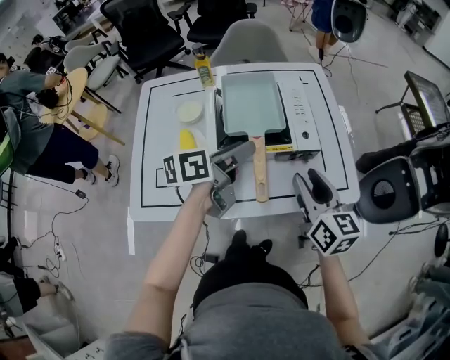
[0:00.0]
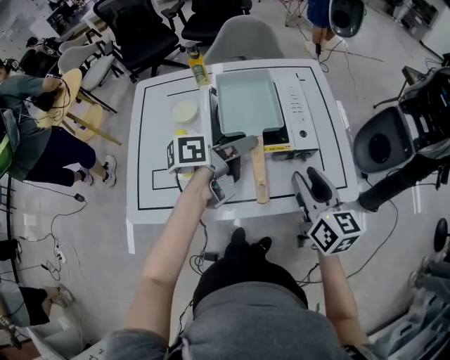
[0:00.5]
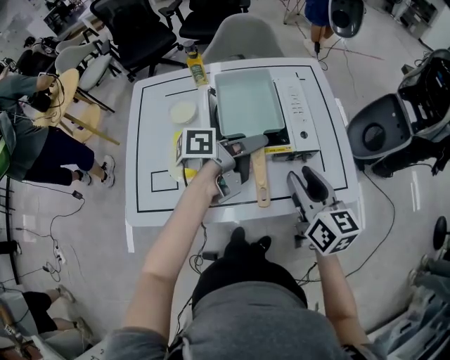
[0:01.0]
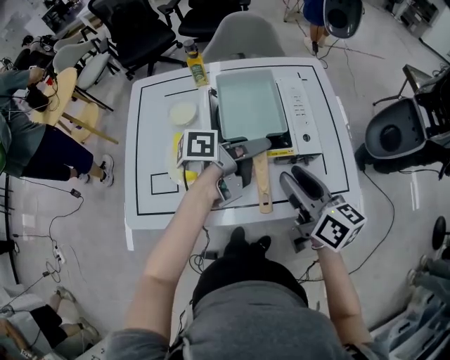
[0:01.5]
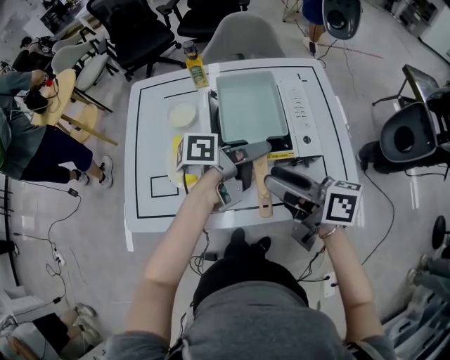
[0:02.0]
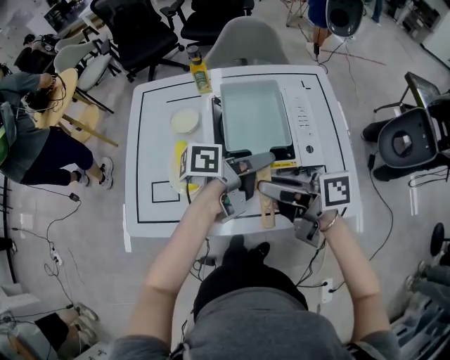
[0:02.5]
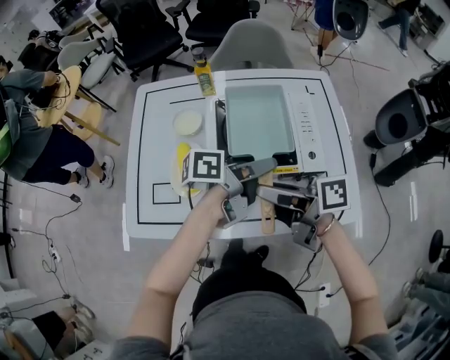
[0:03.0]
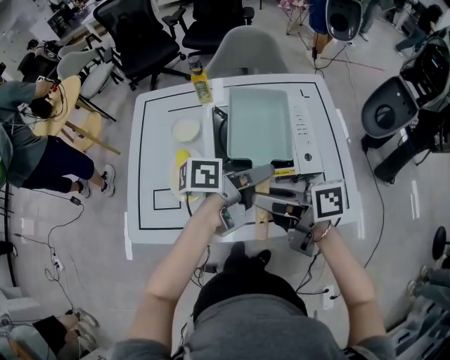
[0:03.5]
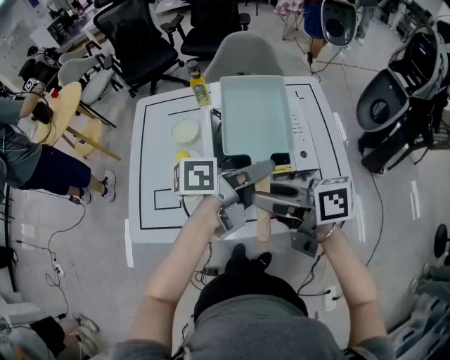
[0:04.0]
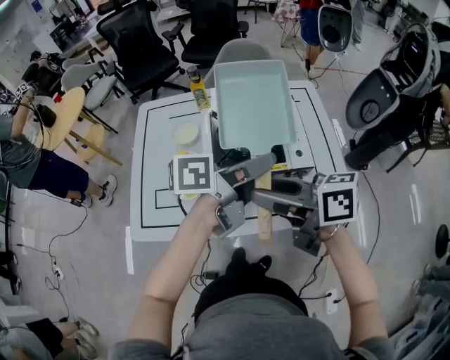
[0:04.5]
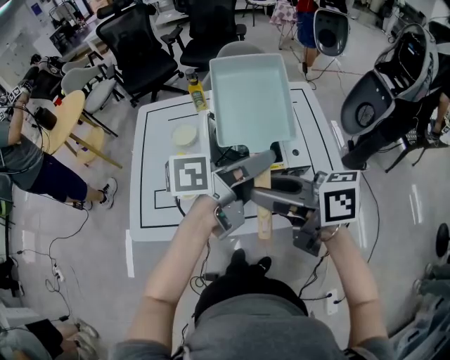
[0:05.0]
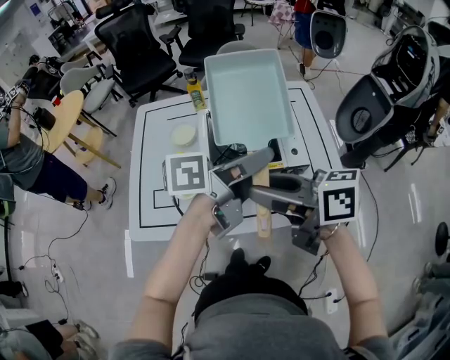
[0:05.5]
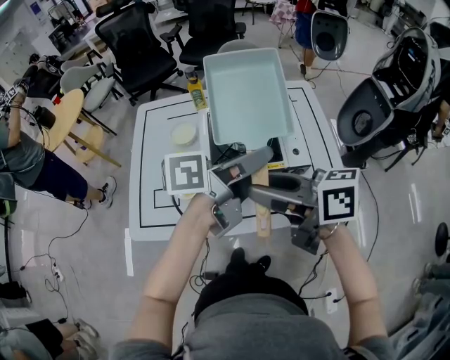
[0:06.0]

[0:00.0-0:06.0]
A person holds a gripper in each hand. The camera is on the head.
0:00.0 to 0:02.0: The right gripper moves to the left, roughly 10 cm, and swivels about 40 degrees, while the left gripper ends up approximately 5 cm from where it was, and swivels roughly 30 degrees.
0:02.0 to 0:04.0: The left gripper is displaced upward by about 5 cm.
0:04.0 to 0:06.0: The two grippers go approximately 5 cm upward.

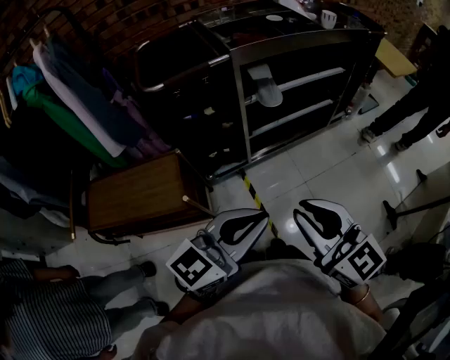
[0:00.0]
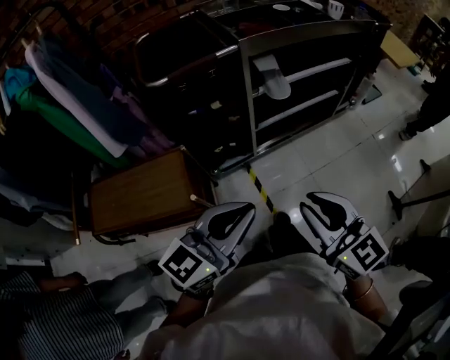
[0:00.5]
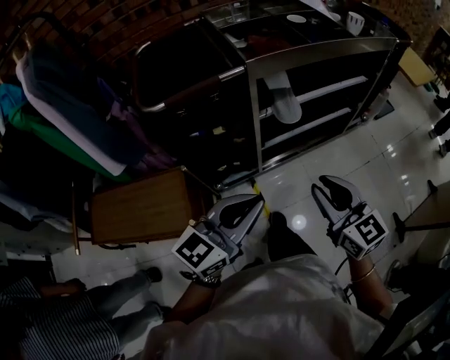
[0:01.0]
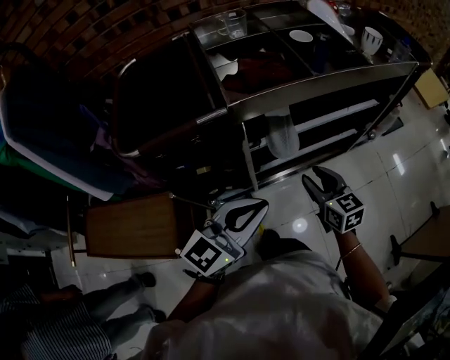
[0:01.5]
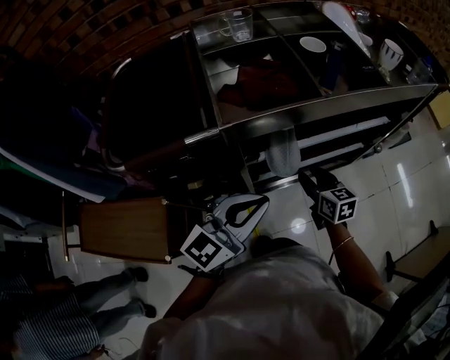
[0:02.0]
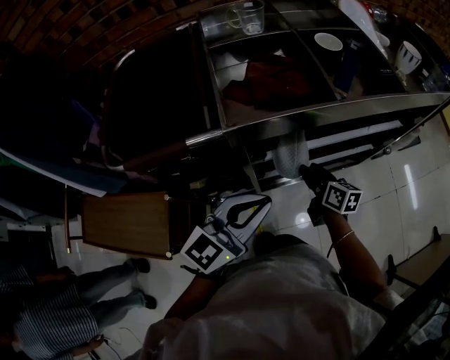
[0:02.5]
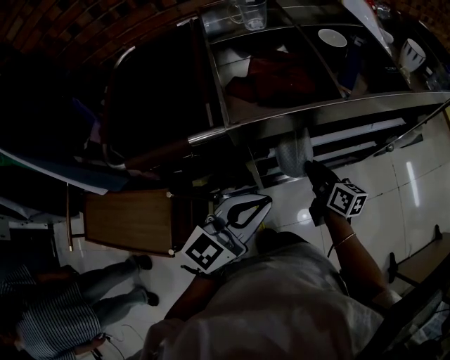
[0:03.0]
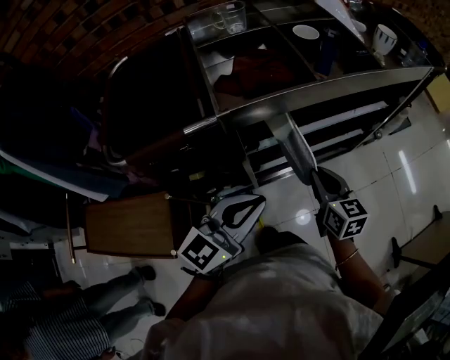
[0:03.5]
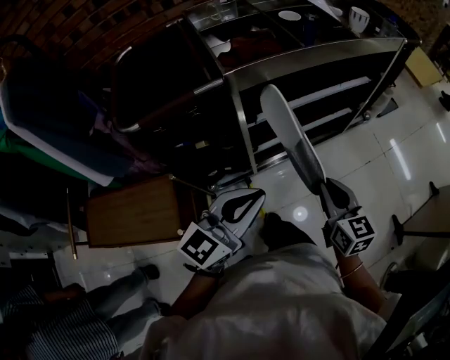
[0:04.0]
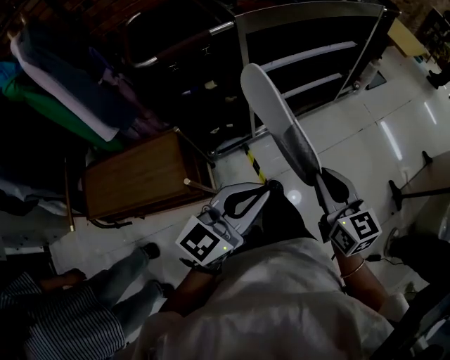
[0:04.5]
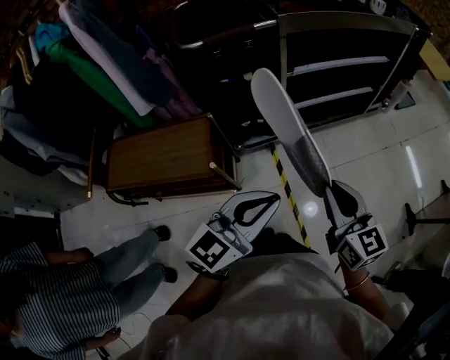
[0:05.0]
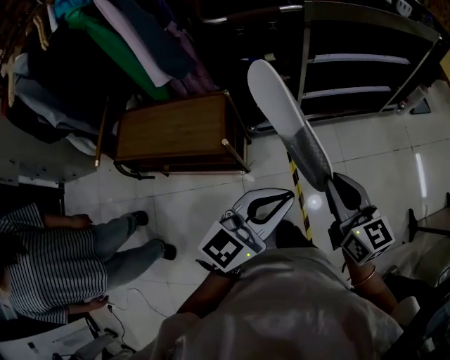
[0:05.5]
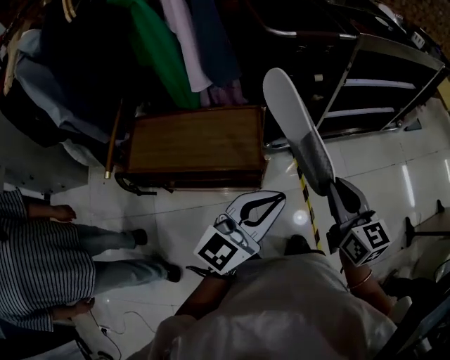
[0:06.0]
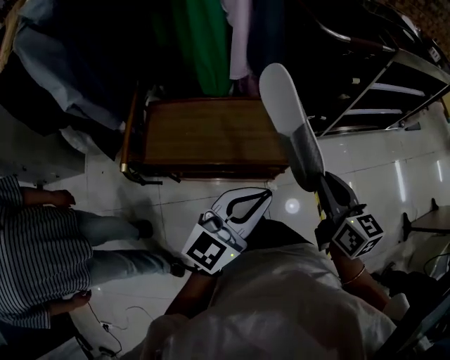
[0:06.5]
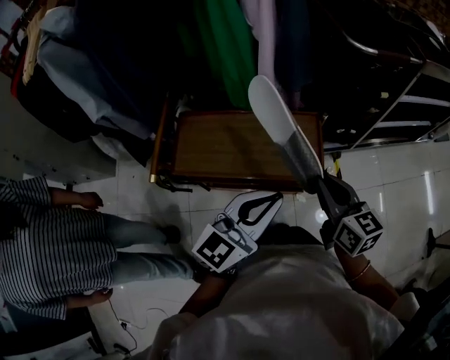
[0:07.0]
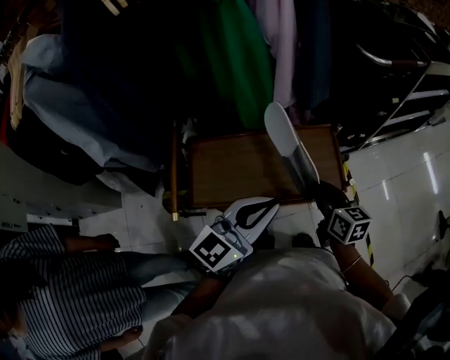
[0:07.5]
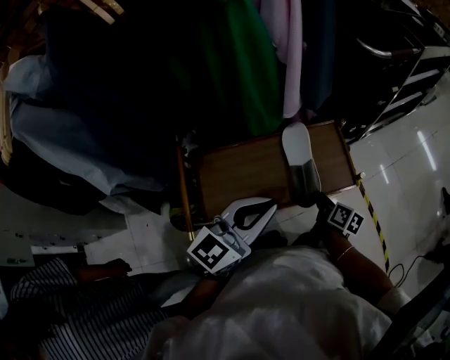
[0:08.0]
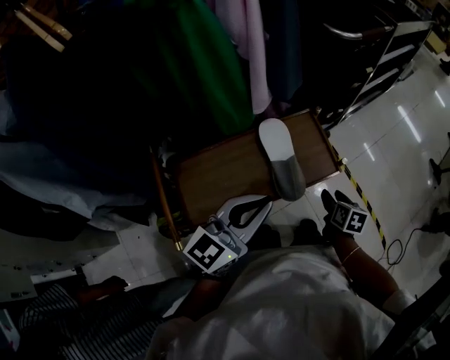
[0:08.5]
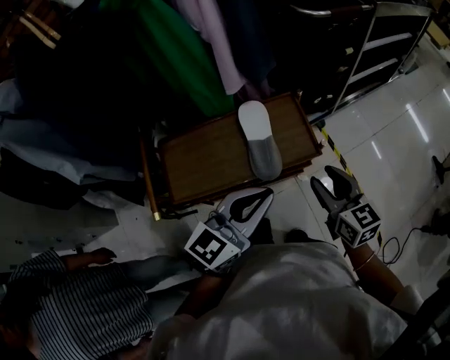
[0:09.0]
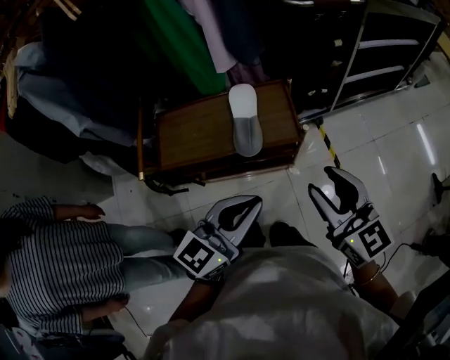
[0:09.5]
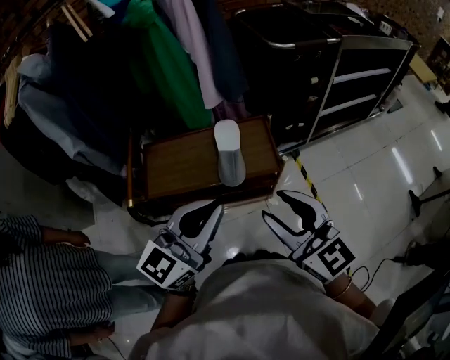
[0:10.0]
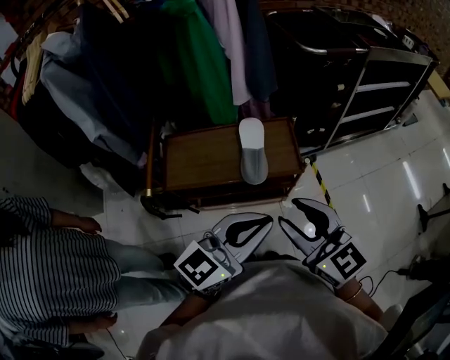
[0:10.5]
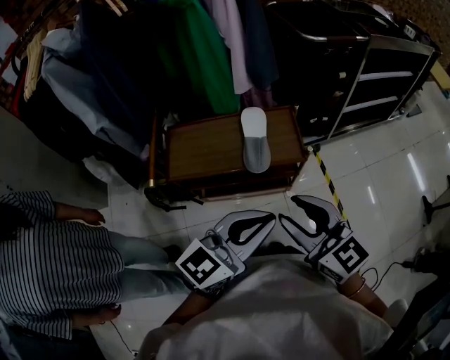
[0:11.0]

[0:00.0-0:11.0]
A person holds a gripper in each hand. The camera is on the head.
0:00.0 to 0:02.0: The left gripper is displaced forward by about 40 cm; the right gripper goes about 60 cm forward and downward, swivels some 30 degrees, and opens up.
0:02.0 to 0:03.5: The right gripper goes roughly 10 cm upward and backward, and closes.
0:03.5 to 0:05.5: The grippers both shift backward by some 40 cm.
0:05.5 to 0:07.5: Both grippers are carried to the left, approximately 50 cm. The right gripper changes its angle by roughly 20 degrees.
0:07.5 to 0:09.0: The right gripper travels to the right and backward by about 10 cm, goes downward and returns, approximately 10 cm each way, and opens its fingers; the left gripper travels to the right by about 10 cm.
0:09.0 to 0:11.0: The right gripper heads backward and upward, covering some 20 cm, and turns by approximately 30 degrees, while the left gripper shifts approximately 15 cm backward, upward and to the right.

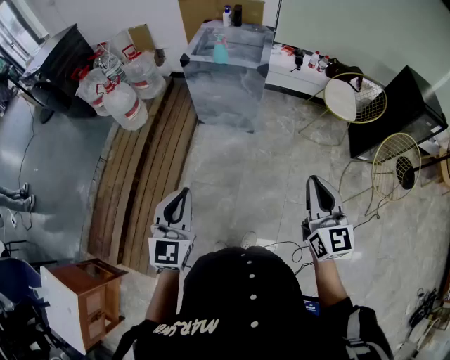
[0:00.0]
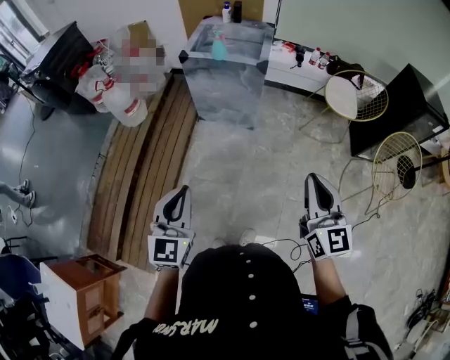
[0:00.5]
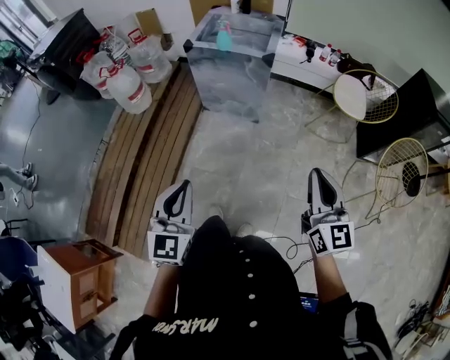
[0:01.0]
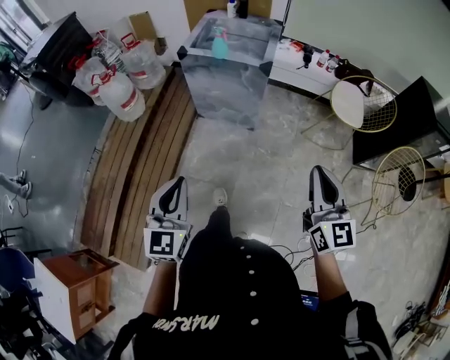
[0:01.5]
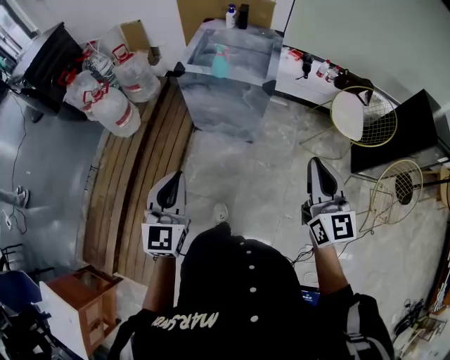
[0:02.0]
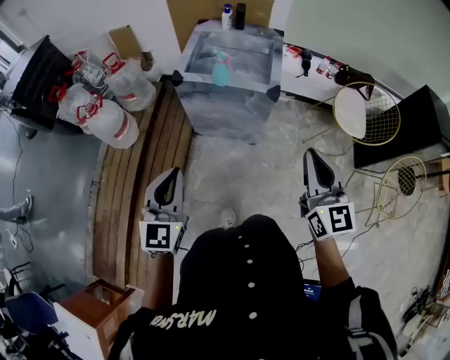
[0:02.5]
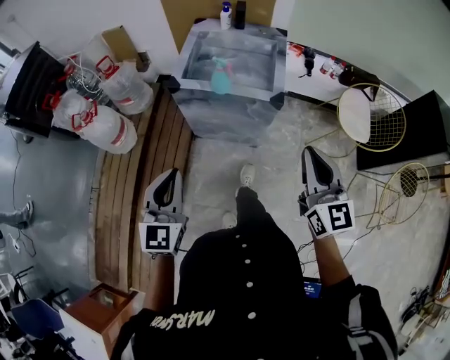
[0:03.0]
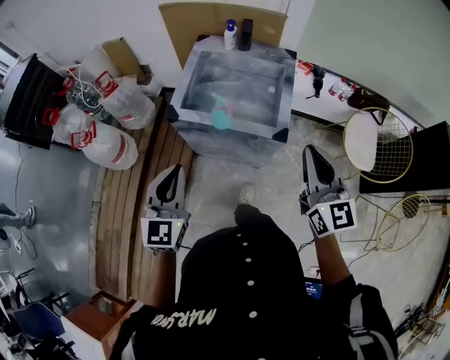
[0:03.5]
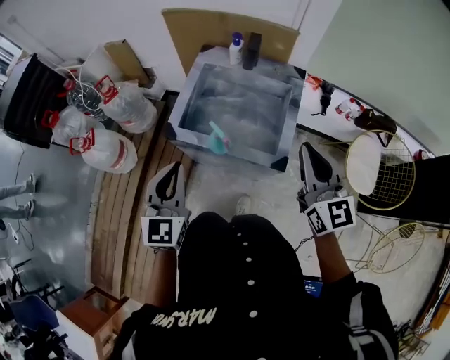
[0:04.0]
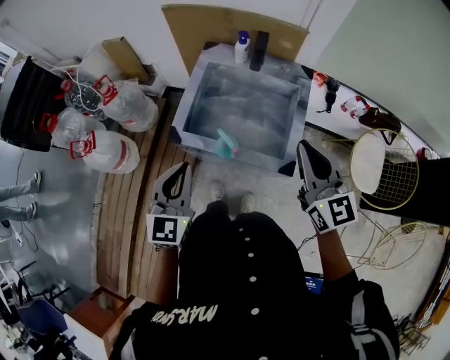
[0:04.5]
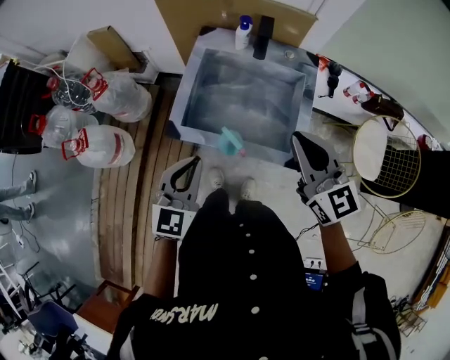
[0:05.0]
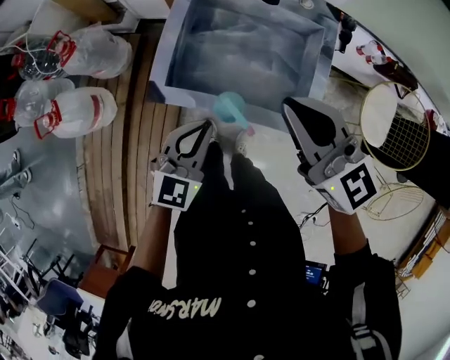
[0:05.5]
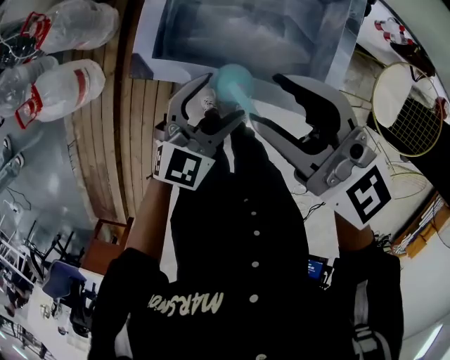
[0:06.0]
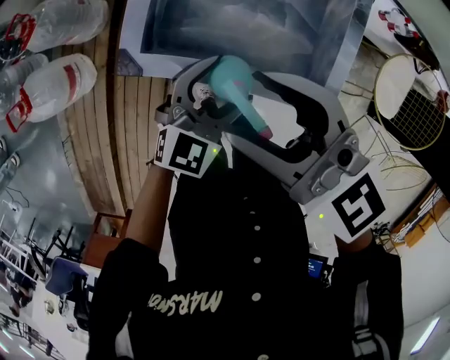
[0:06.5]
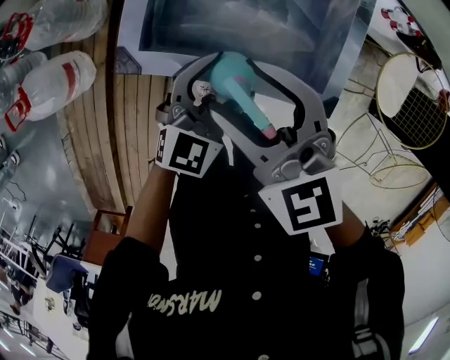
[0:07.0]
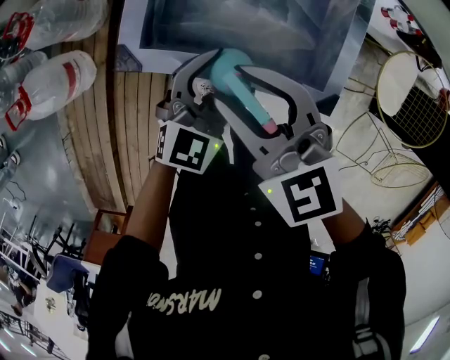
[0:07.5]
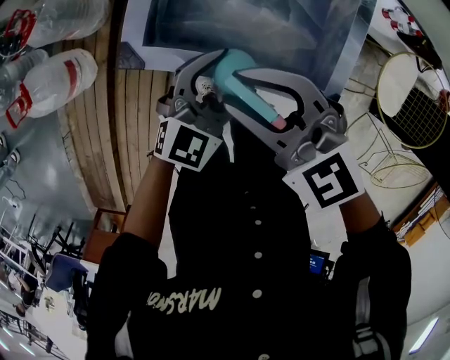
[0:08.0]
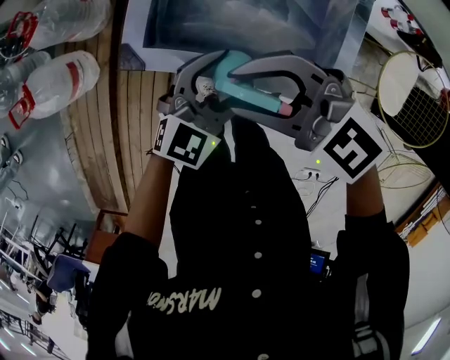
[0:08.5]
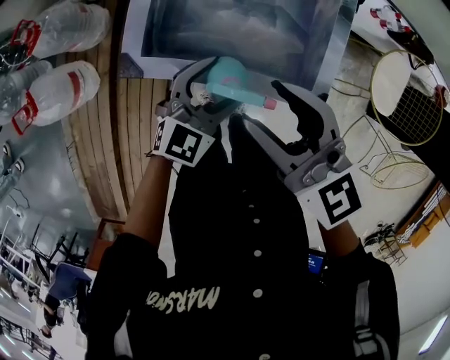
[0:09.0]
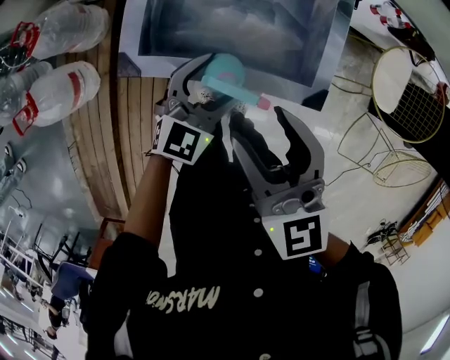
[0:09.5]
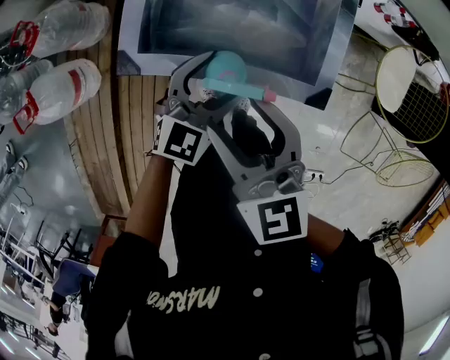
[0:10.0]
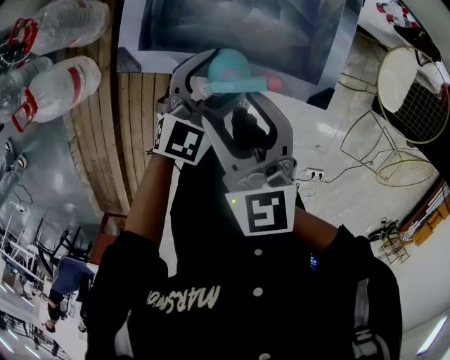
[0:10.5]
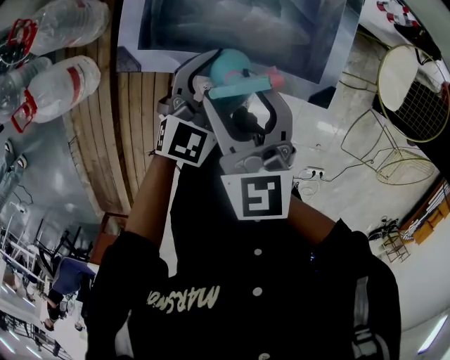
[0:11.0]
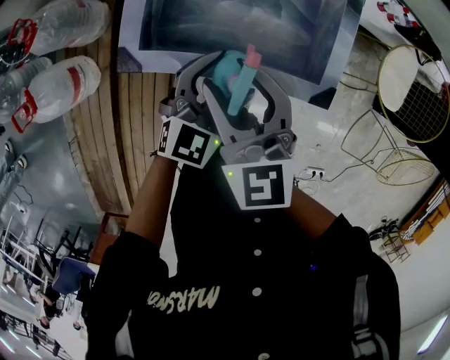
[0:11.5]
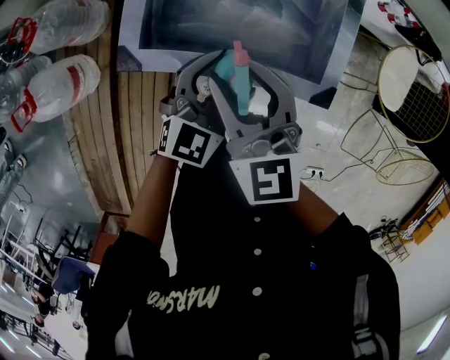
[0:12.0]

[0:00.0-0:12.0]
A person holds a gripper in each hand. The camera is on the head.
0:00.0 to 0:02.0: The grippers both shift forward by about 25 cm.
0:02.0 to 0:04.0: The two grippers travel together, forward, approximately 50 cm.
0:04.0 to 0:06.0: The right gripper travels to the left, forward and downward by approximately 25 cm, changes its angle by some 30 degrees, and opens; the left gripper shifts about 25 cm downward and forward, swivels approximately 40 degrees, and opens its fingers.
0:06.0 to 0:08.0: The right gripper shifts some 10 cm downward, and turns by roughly 30 degrees.
0:08.0 to 0:10.0: The right gripper swivels about 40 degrees.
0:10.0 to 0:12.0: The right gripper changes place by roughly 5 cm.
